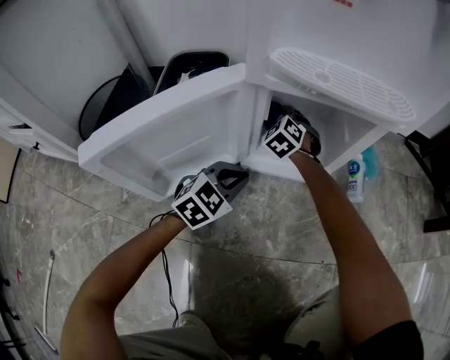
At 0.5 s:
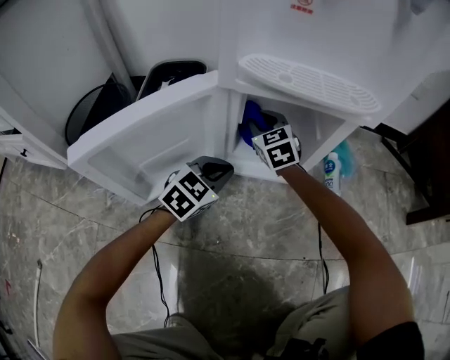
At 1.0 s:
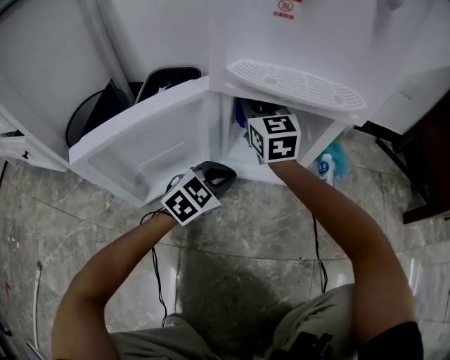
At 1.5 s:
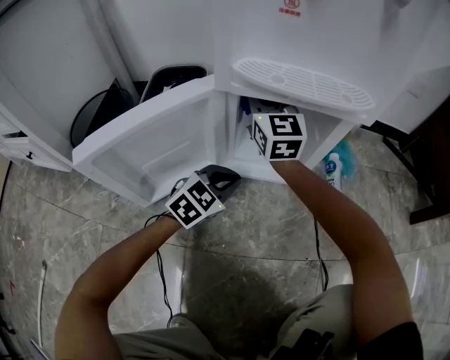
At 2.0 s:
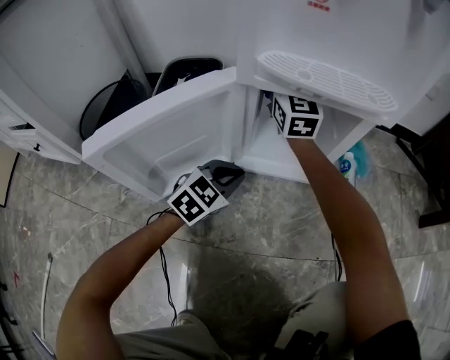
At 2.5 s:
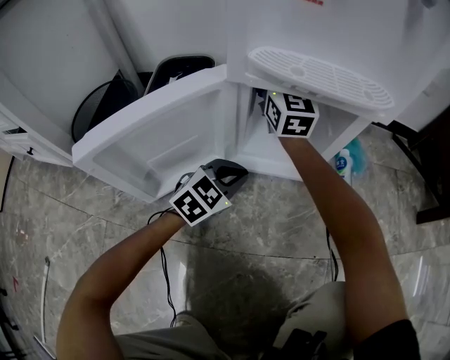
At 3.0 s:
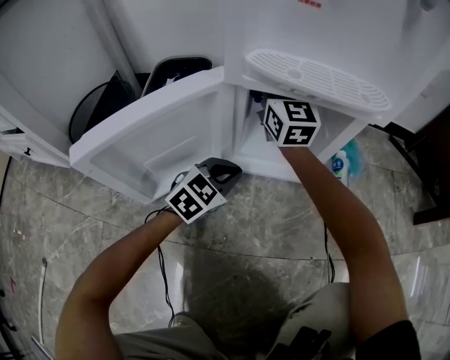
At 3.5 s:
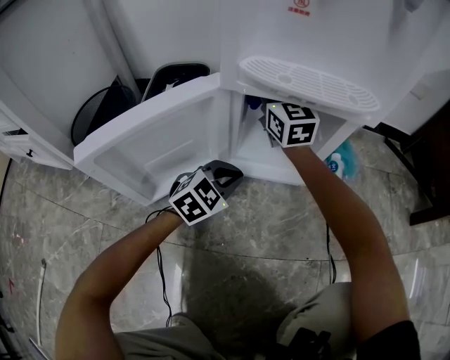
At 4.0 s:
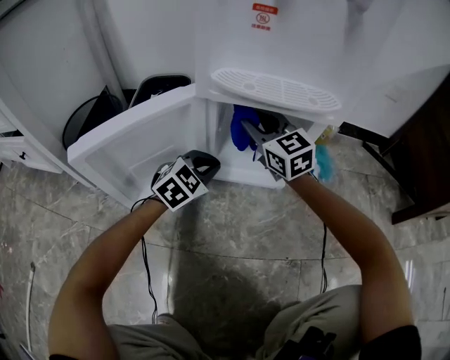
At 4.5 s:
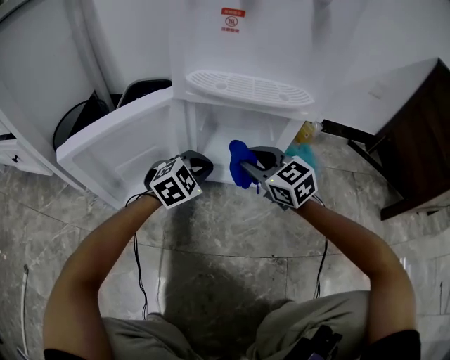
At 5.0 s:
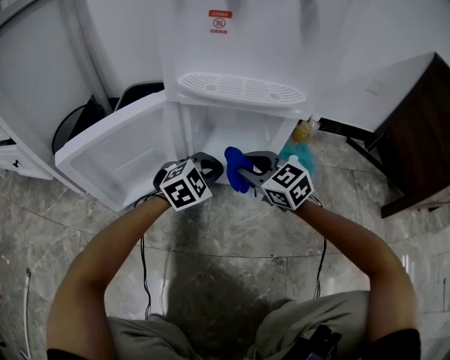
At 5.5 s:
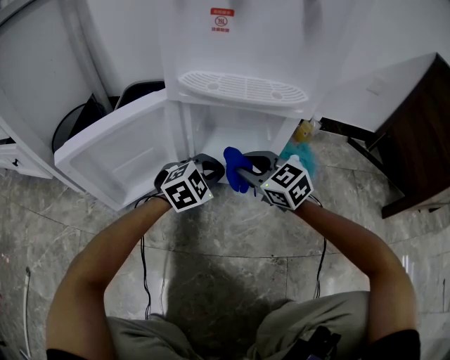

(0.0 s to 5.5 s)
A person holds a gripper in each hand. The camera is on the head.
0.0 s - 2.0 s: The right gripper travels upward by some 25 cm, and points its fingers approximately 50 degrees further upward.
2.0 s - 3.5 s: The grippers stay close to where they were, moving slightly.
3.5 s - 5.5 s: The left gripper heads to the right, covering about 5 cm, while the right gripper travels backward, downward and to the right by some 25 cm, and swivels about 40 degrees.

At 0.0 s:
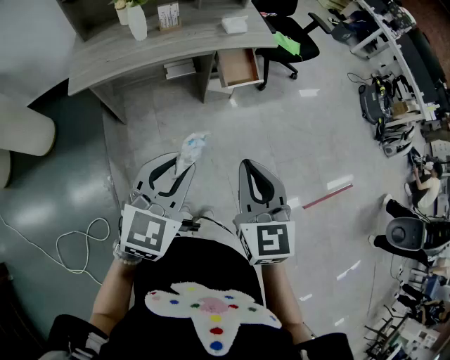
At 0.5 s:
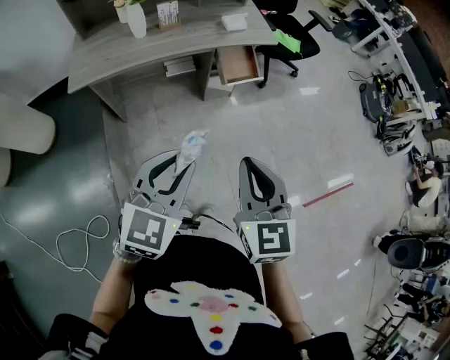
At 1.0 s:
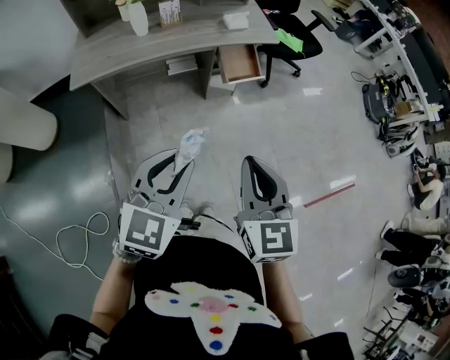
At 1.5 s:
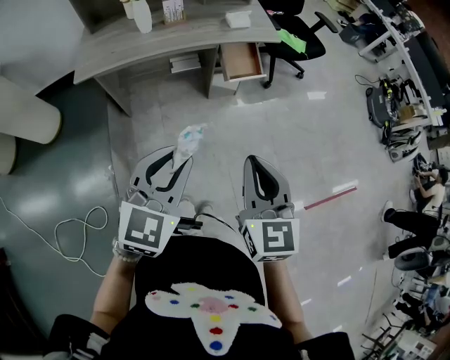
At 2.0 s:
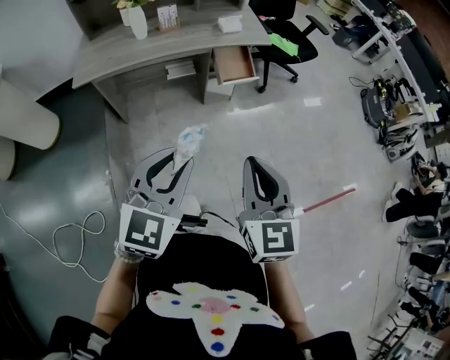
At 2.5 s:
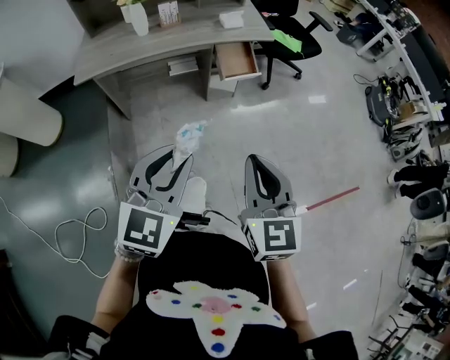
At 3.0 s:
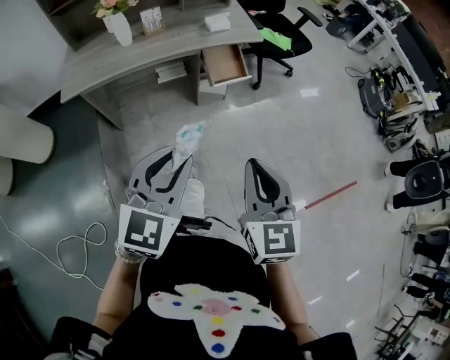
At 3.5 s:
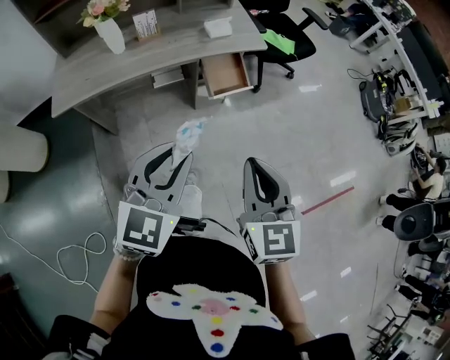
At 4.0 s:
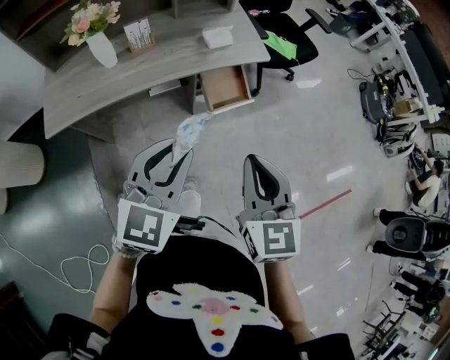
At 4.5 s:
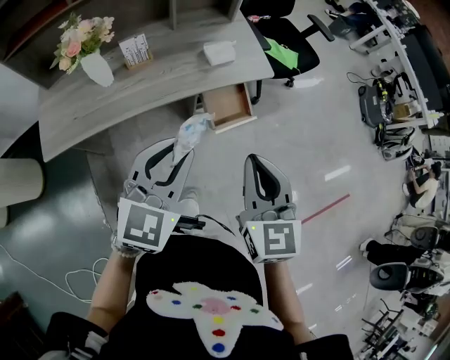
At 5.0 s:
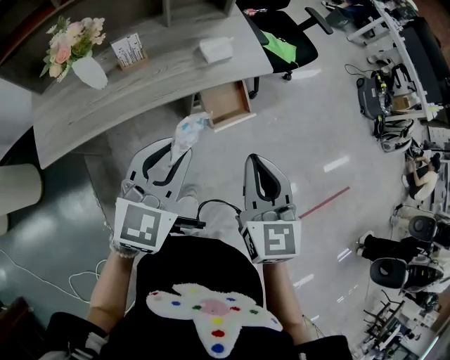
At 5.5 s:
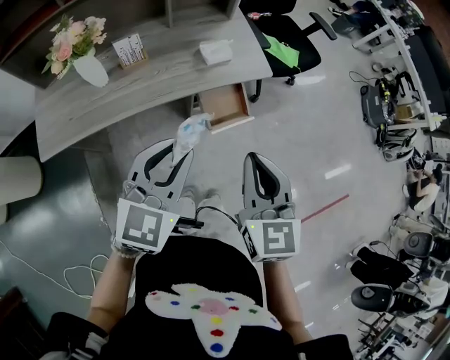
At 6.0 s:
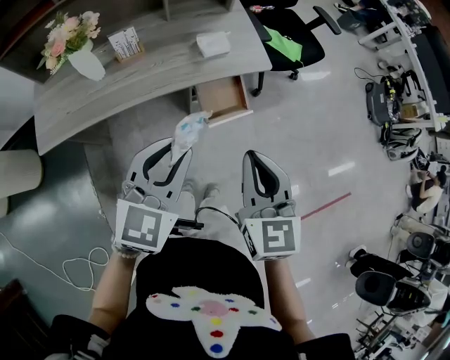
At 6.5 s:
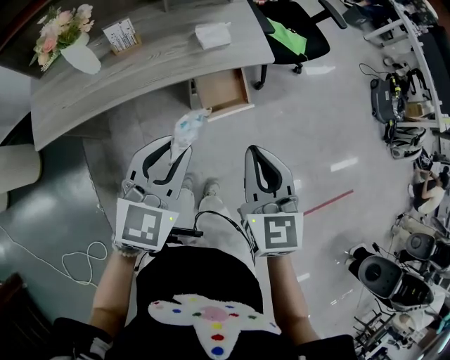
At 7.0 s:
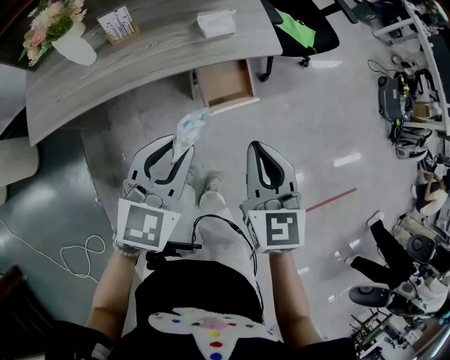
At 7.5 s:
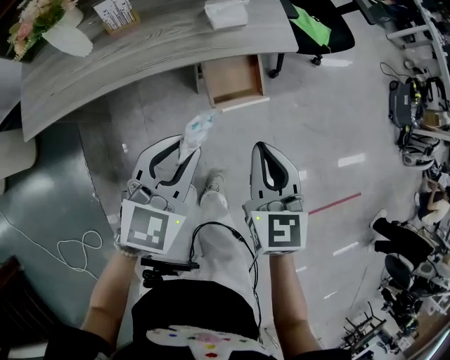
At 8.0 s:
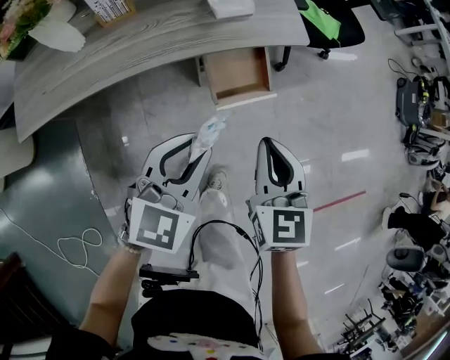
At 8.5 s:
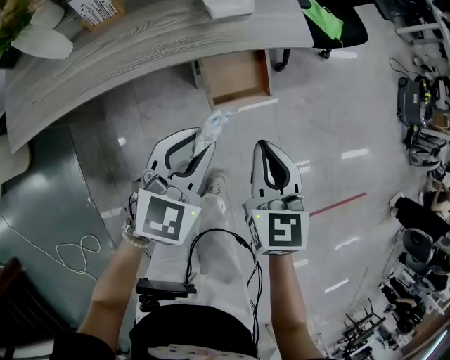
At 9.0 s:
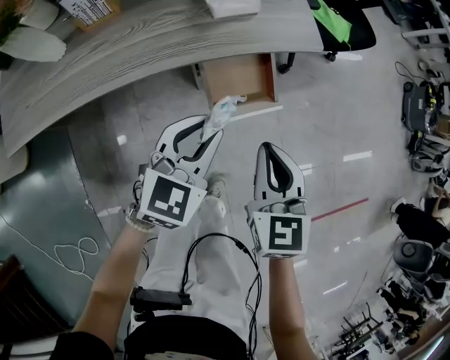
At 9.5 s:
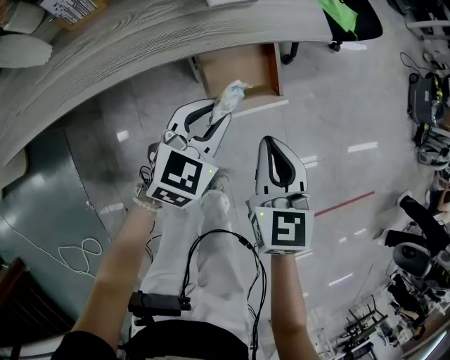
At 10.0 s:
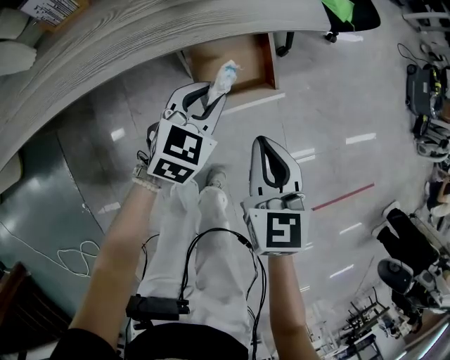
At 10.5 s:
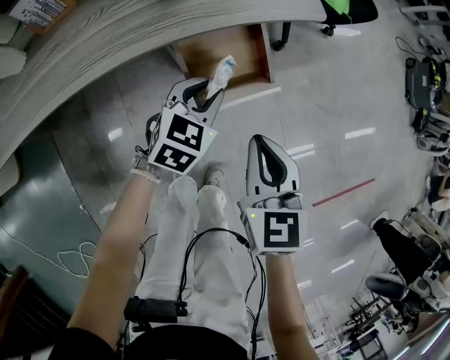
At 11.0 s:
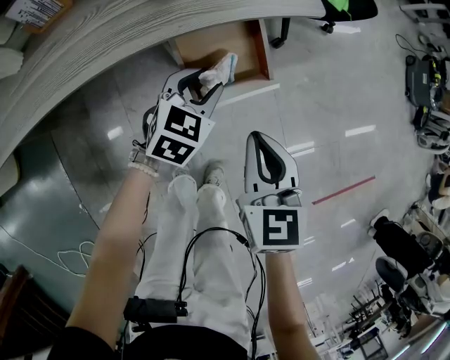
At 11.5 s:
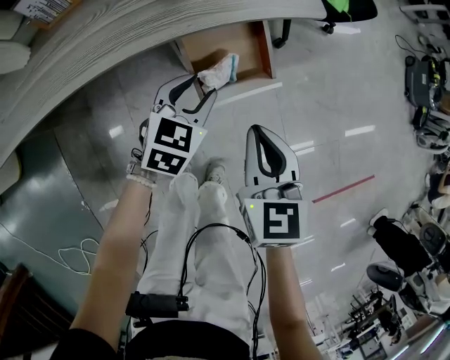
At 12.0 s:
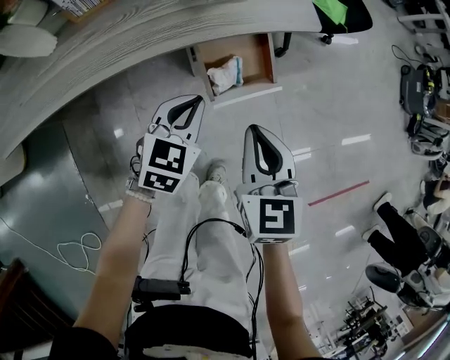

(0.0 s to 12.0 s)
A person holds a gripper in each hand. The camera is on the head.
0.0 s - 2.0 s: The left gripper changes place by approximately 5 cm; the right gripper is displaced to the right by approximately 5 cm.
2.0 s - 4.0 s: Both grippers travel together forward, roughly 25 cm.
4.0 s - 6.0 s: Both grippers move forward, roughly 10 cm.
6.0 s - 8.0 s: Both grippers travel together downward, some 15 cm.
8.0 s - 10.0 s: The right gripper goes some 10 cm downward. The left gripper is displaced downward and forward by roughly 25 cm.
10.0 s - 12.0 s: The right gripper changes place by about 5 cm, while the left gripper moves backward, about 5 cm, and opens and closes again.

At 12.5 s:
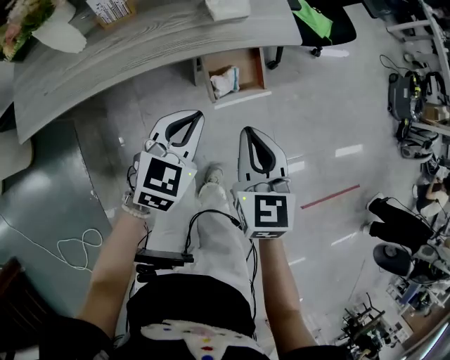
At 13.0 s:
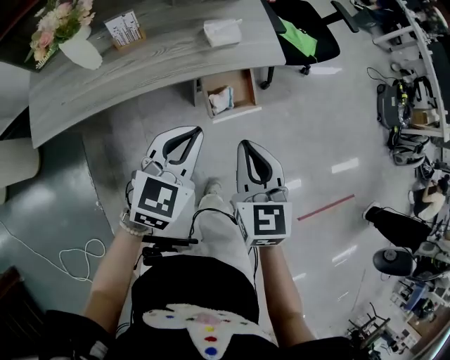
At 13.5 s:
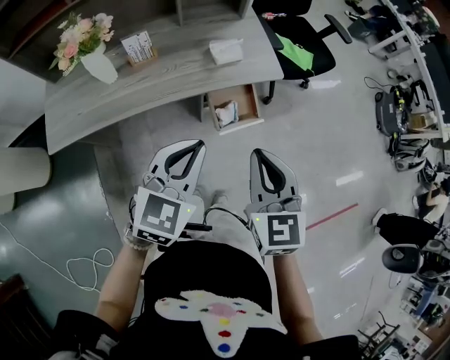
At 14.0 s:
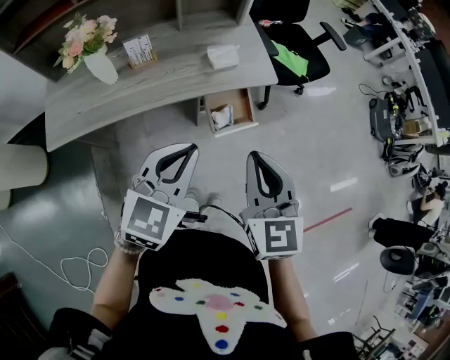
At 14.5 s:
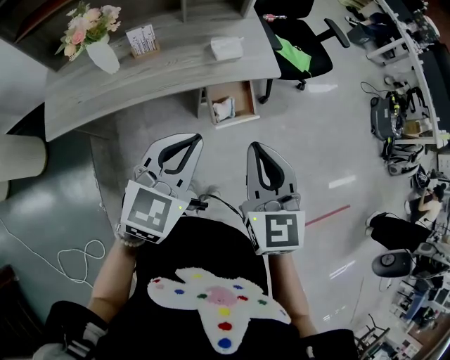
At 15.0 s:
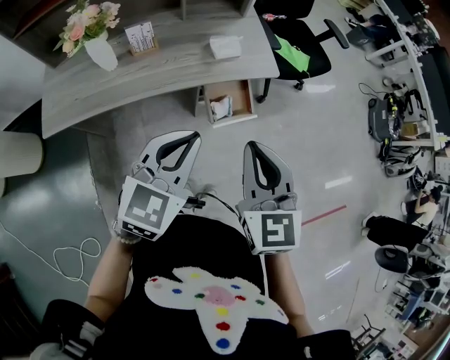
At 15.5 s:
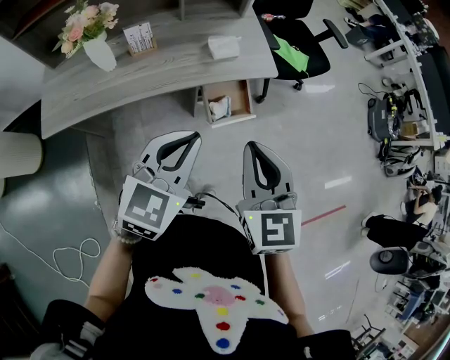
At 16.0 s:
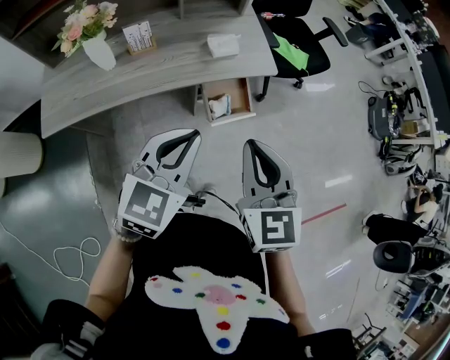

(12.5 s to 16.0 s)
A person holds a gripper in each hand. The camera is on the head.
12.5 s - 14.5 s: The grippers both shift upward by approximately 20 cm.
14.5 s - 16.0 s: Both grippers stay put.

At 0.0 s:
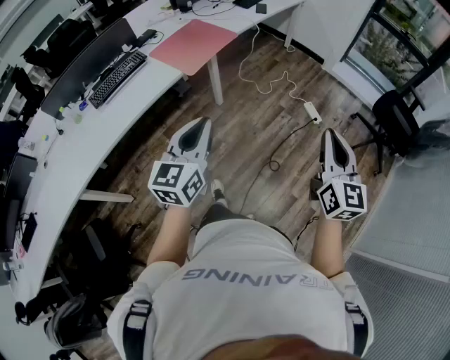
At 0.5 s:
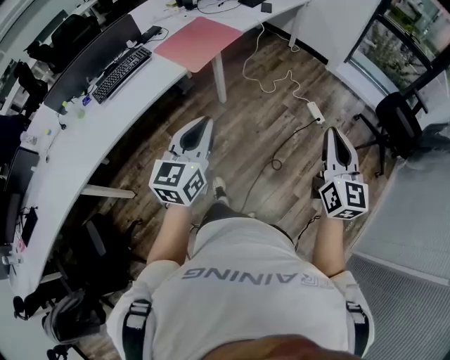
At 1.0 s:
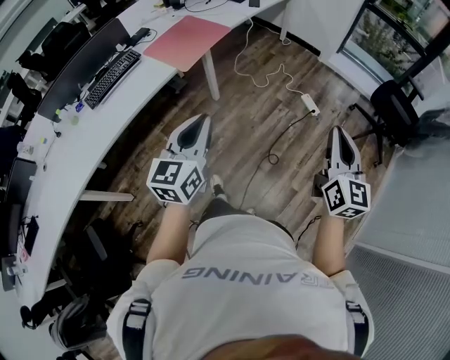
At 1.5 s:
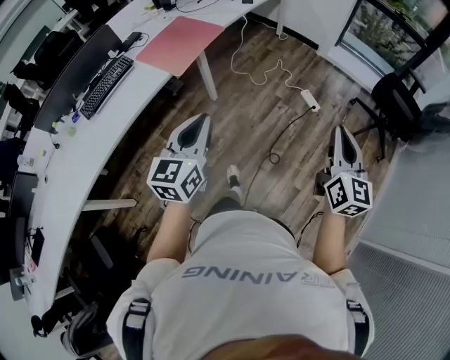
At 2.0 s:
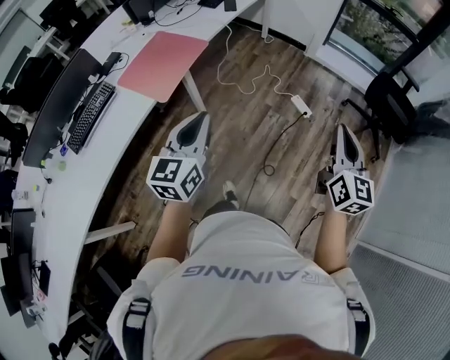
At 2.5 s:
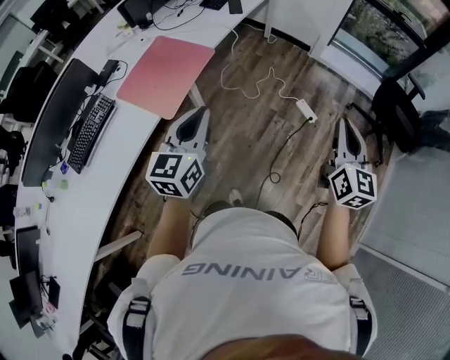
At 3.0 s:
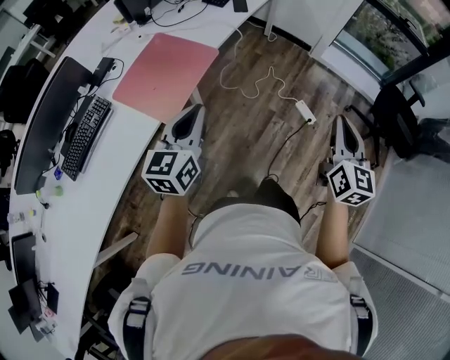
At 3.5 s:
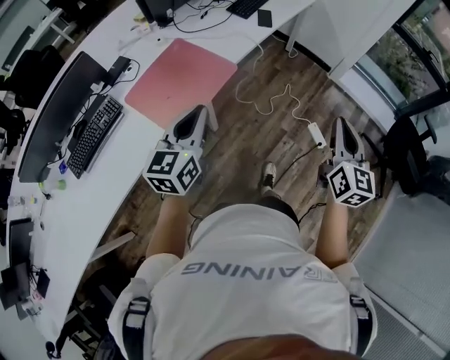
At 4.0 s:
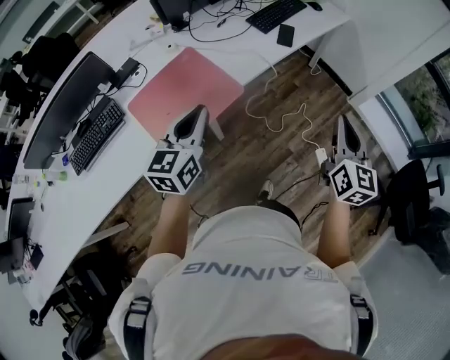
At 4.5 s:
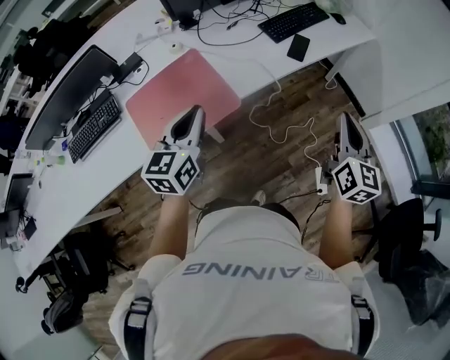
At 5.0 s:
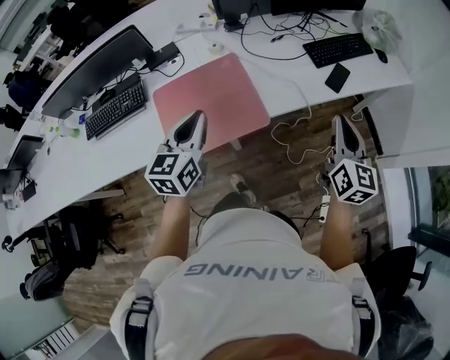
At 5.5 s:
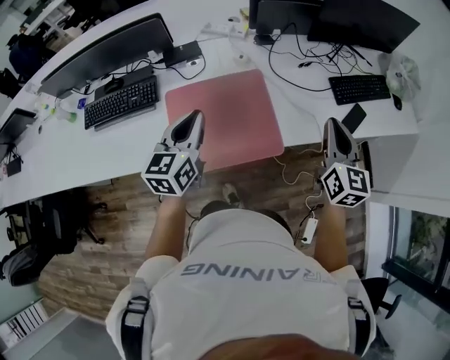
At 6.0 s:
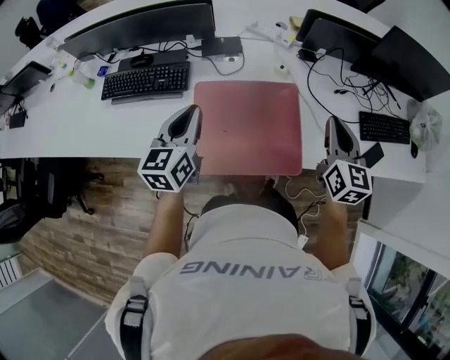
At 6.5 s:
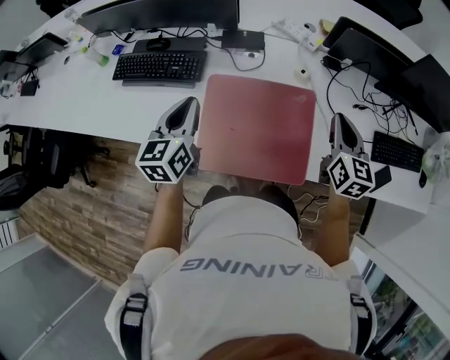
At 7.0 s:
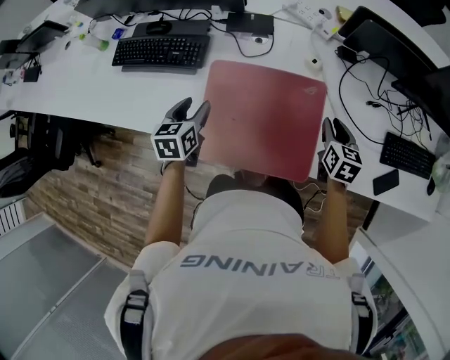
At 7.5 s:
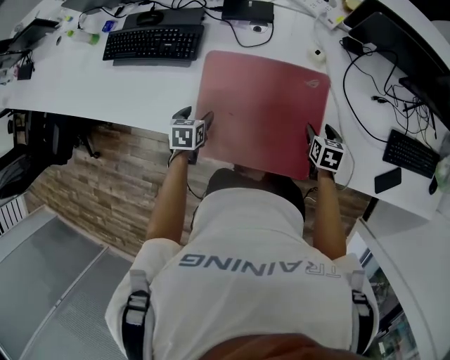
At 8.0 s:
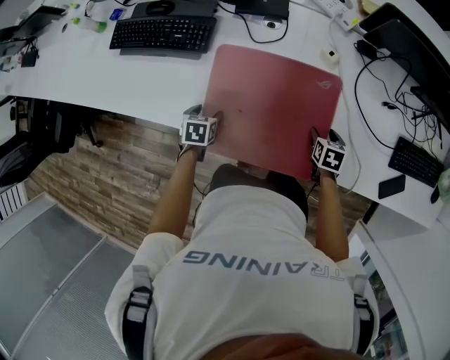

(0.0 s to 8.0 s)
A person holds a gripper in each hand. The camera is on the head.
0.0 s - 2.0 s: The left gripper travels forward by about 20 cm, while the right gripper moves forward and to the right, approximately 20 cm.
2.0 s - 4.0 s: The pair of grippers is taken forward, some 50 cm.
4.0 s - 6.0 s: The right gripper shifts by some 50 cm, and changes its angle by approximately 50 degrees. The left gripper shifts by approximately 30 cm, and swivels some 50 degrees.
6.0 s - 8.0 s: The grippers both shift downward by some 35 cm. The left gripper tips its fingers downward by about 50 degrees, and opens up, while the right gripper points its fingers about 50 degrees further downward, and opens its fingers.
